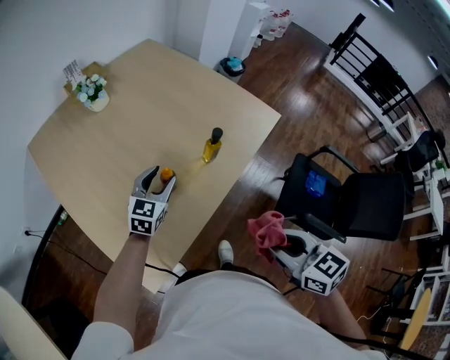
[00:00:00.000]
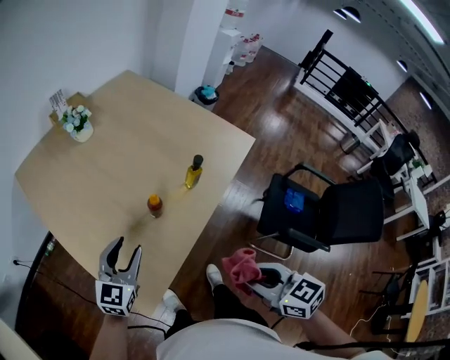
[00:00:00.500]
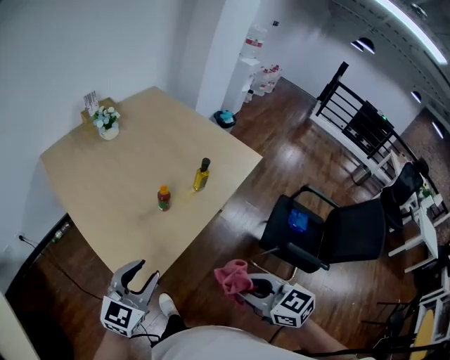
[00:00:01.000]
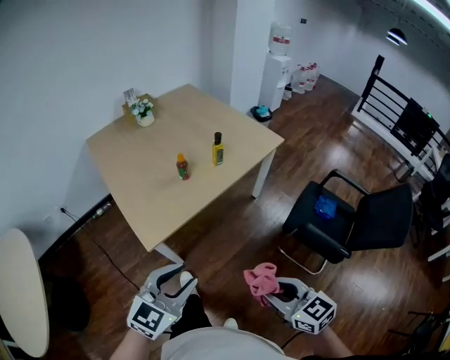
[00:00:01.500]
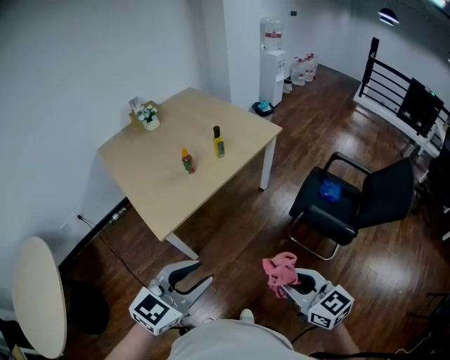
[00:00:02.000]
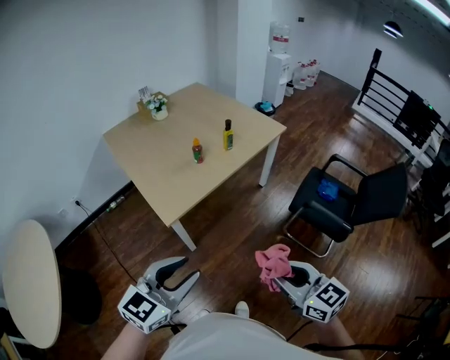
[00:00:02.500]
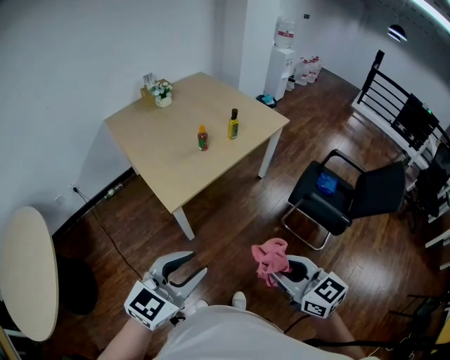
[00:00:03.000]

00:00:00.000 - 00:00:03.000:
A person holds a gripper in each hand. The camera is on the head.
00:00:00.000 - 00:00:01.500: The right gripper is displaced backward by approximately 30 cm. The left gripper heads backward, covering some 50 cm.
00:00:01.500 - 00:00:03.000: The right gripper heads backward, to the left and upward, covering some 15 cm; the left gripper travels backward by roughly 15 cm.

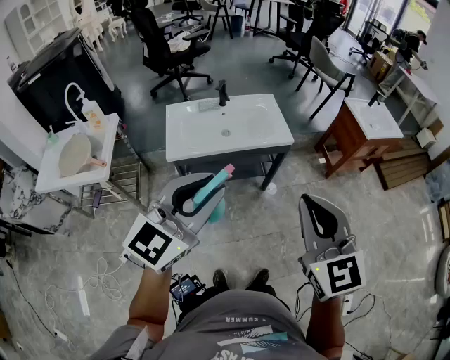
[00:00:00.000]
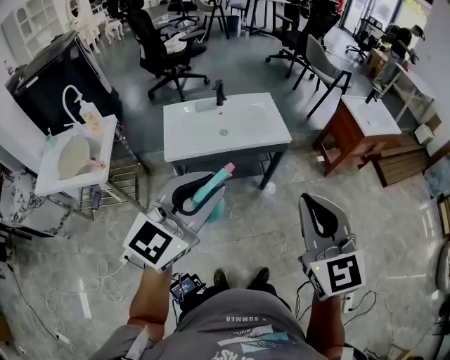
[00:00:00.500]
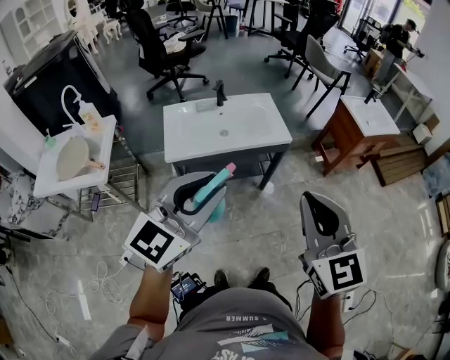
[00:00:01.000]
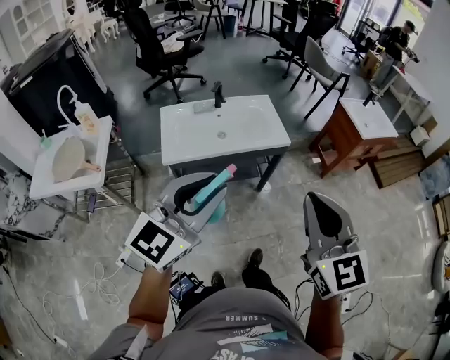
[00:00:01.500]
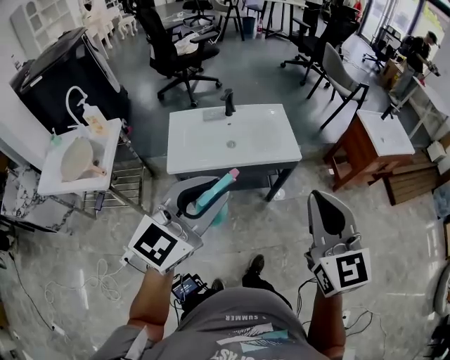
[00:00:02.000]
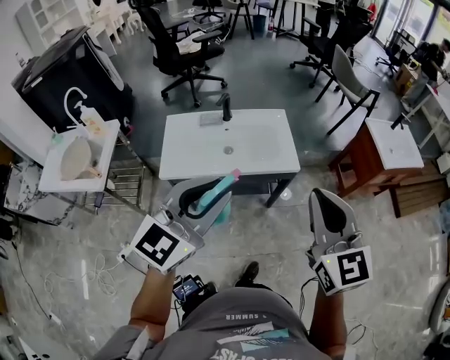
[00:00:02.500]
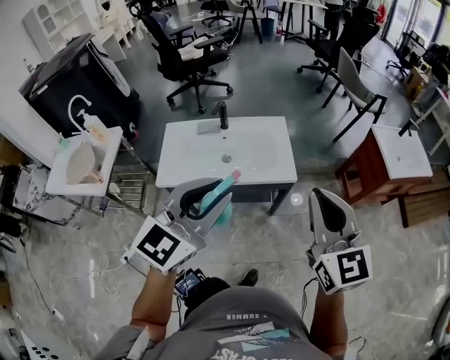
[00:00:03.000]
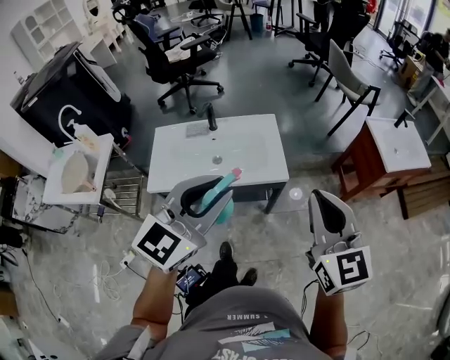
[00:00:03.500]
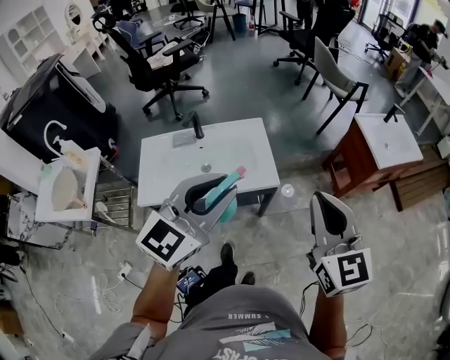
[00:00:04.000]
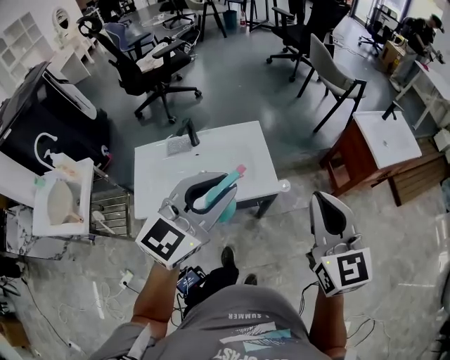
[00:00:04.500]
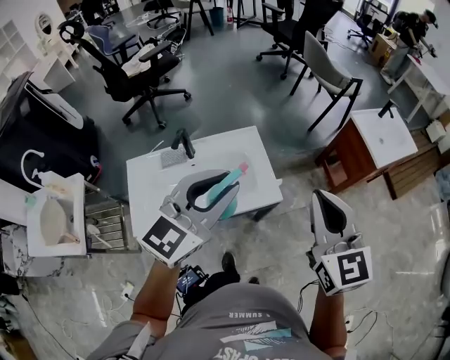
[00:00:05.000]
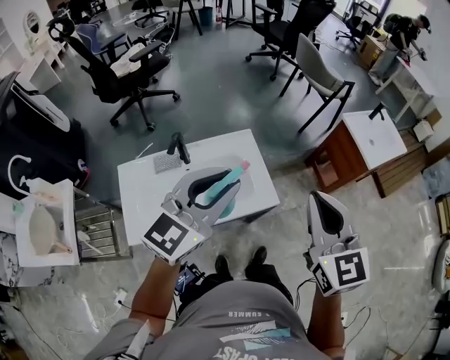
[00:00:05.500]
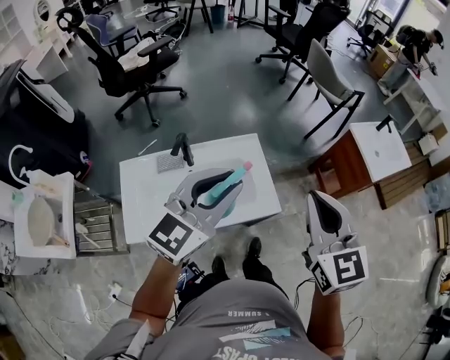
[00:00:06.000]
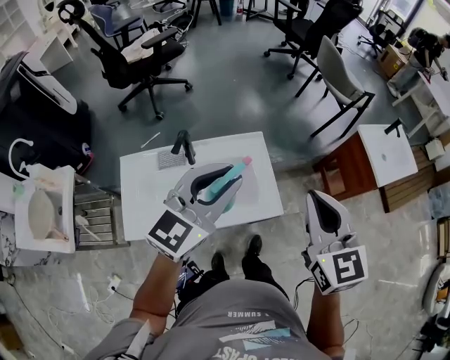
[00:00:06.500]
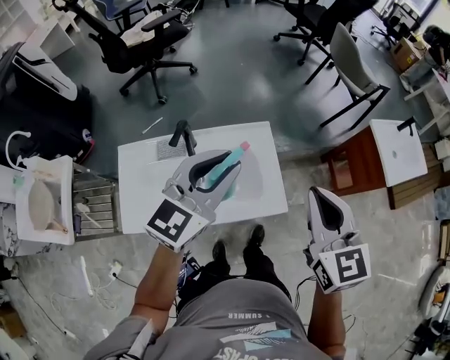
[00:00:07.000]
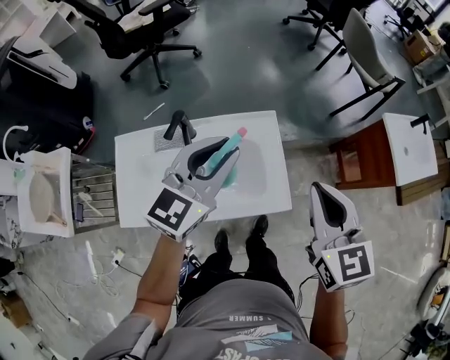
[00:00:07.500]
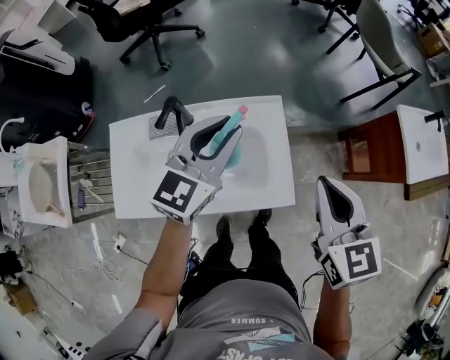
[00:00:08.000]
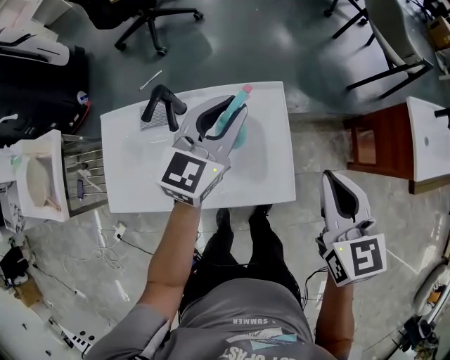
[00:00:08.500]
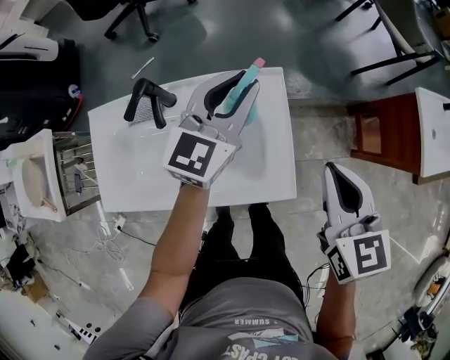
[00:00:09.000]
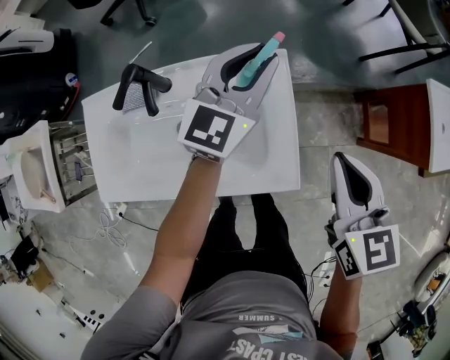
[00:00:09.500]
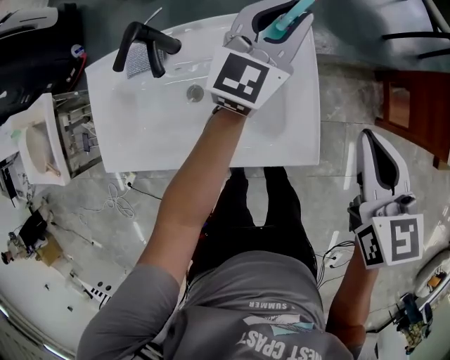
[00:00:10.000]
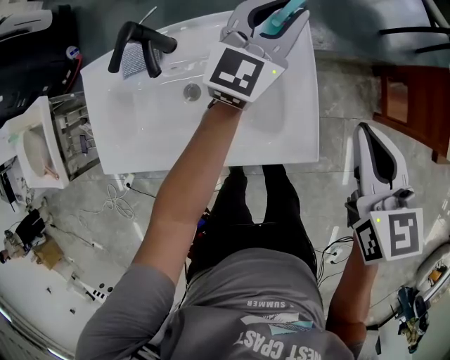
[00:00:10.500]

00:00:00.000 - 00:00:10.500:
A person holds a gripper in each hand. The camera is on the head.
00:00:00.000 - 00:00:02.000: Both grippers move forward, about 10 cm.
00:00:02.000 - 00:00:04.000: Both grippers move forward and to the right, roughly 30 cm.
00:00:04.000 - 00:00:06.500: The two grippers go some 25 cm forward and to the left.
00:00:06.500 - 00:00:08.500: The left gripper heads forward and downward, covering approximately 30 cm. The right gripper moves downward and forward, approximately 25 cm.
00:00:08.500 - 00:00:10.500: The right gripper moves downward, about 10 cm. Meanwhile the left gripper travels downward, forward and to the right by approximately 15 cm.

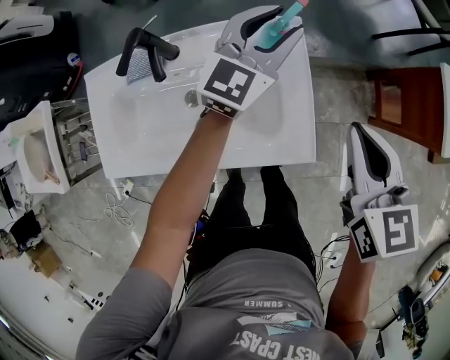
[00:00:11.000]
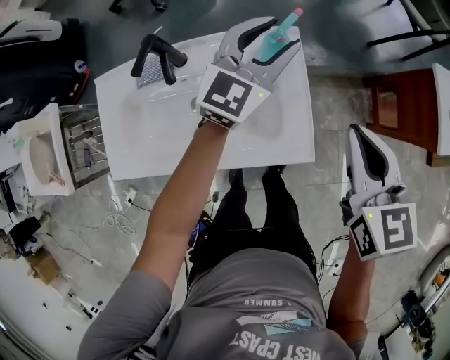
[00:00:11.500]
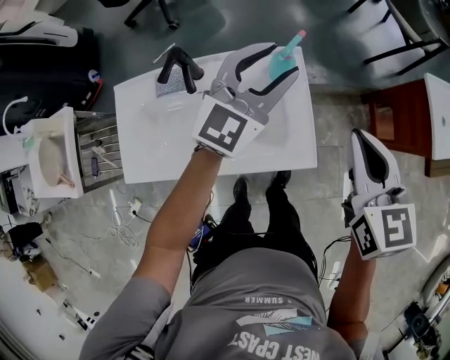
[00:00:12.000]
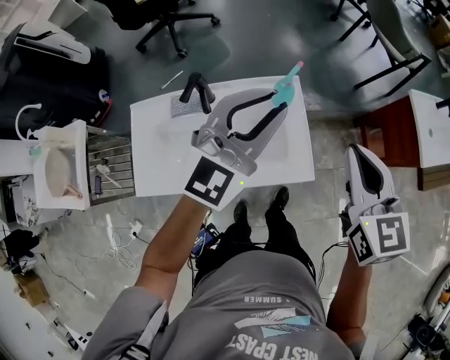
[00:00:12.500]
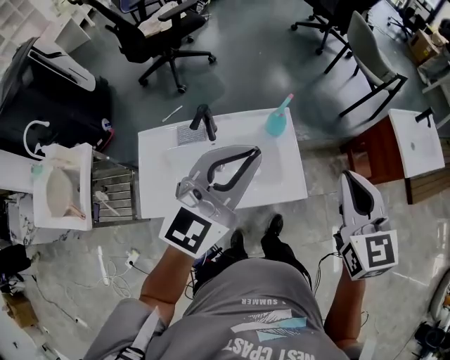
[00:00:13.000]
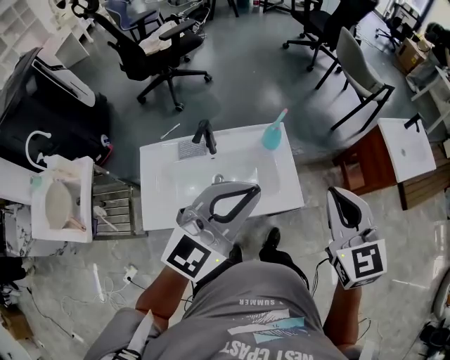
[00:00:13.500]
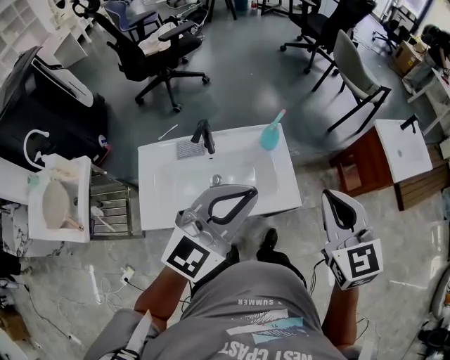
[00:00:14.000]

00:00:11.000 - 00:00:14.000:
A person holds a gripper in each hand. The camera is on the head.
00:00:11.000 - 00:00:12.500: The right gripper is displaced upward and backward by roughly 20 cm; the left gripper is displaced upward and backward by approximately 30 cm.
00:00:12.500 - 00:00:14.000: Both grippers move backward and upward, some 15 cm.

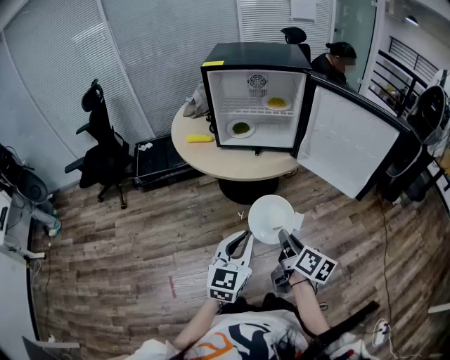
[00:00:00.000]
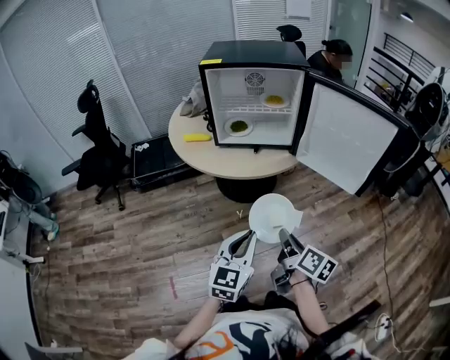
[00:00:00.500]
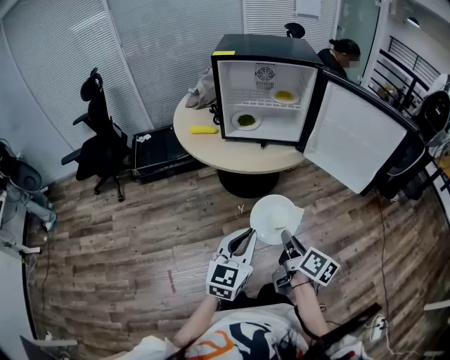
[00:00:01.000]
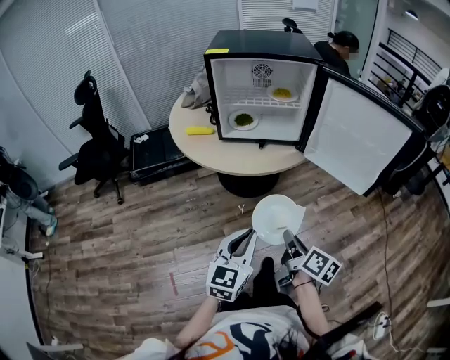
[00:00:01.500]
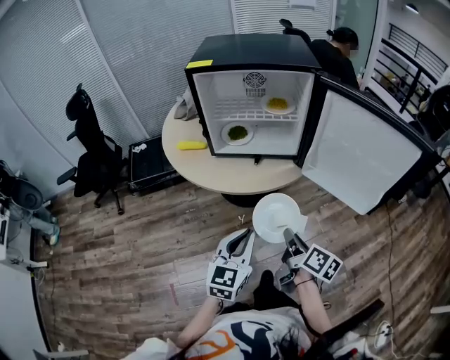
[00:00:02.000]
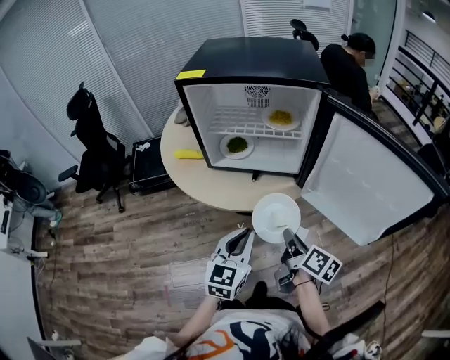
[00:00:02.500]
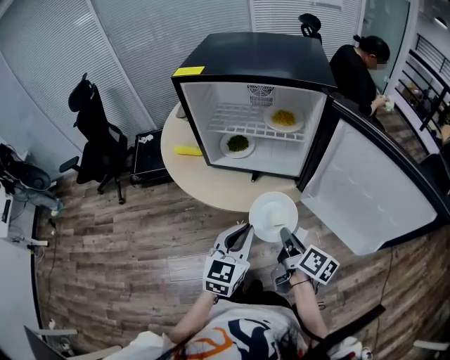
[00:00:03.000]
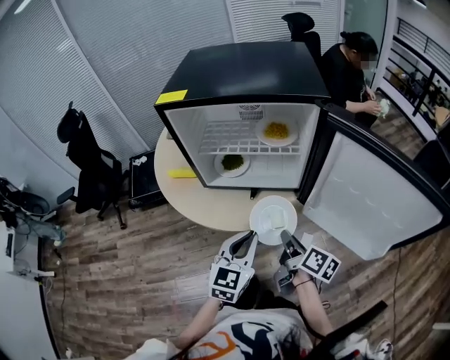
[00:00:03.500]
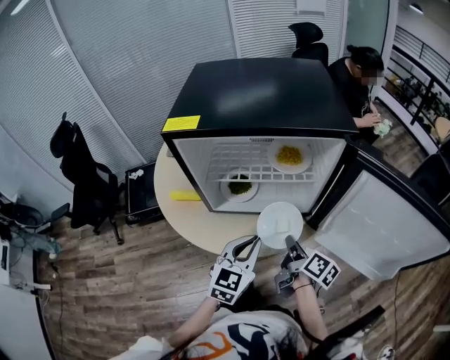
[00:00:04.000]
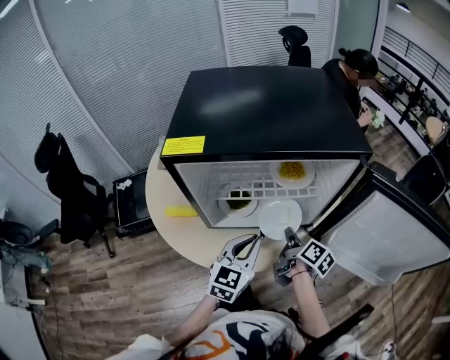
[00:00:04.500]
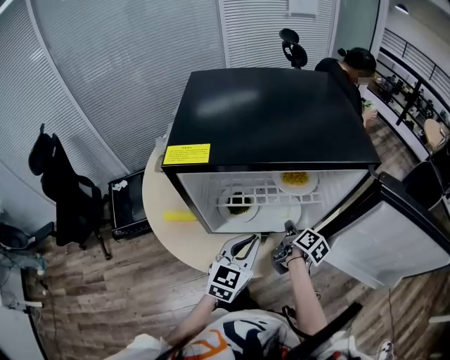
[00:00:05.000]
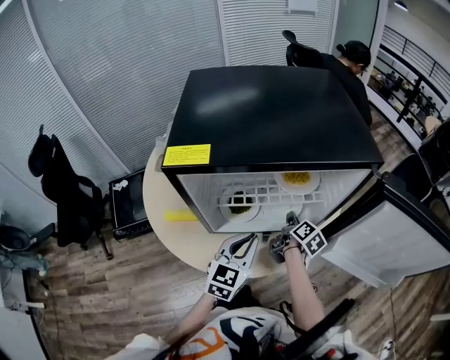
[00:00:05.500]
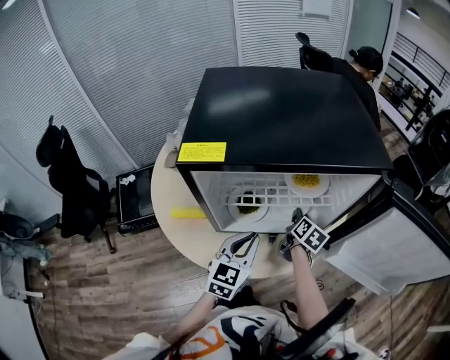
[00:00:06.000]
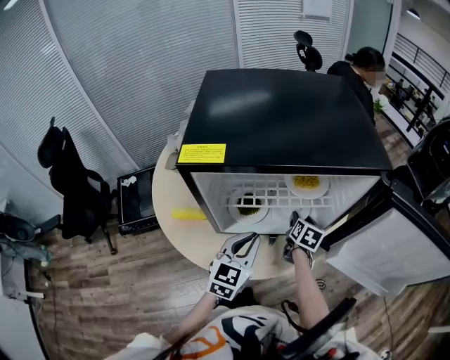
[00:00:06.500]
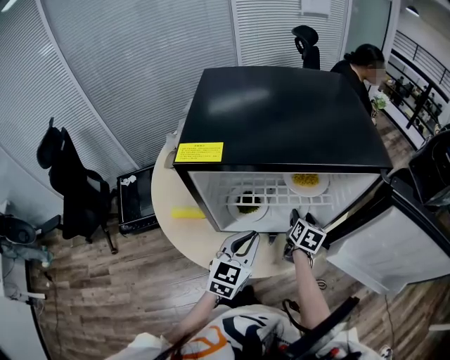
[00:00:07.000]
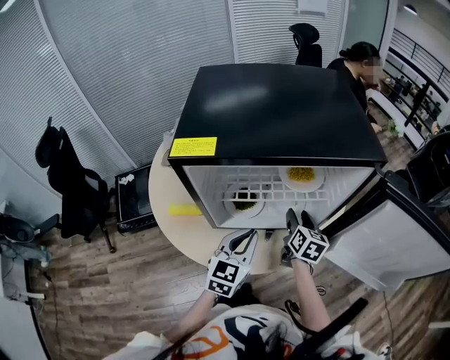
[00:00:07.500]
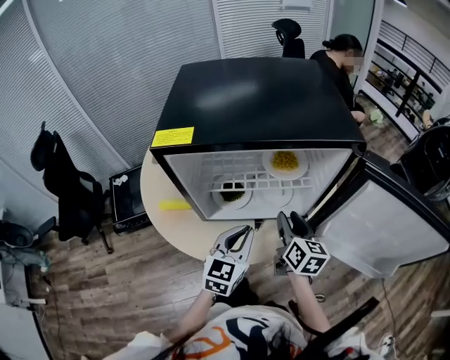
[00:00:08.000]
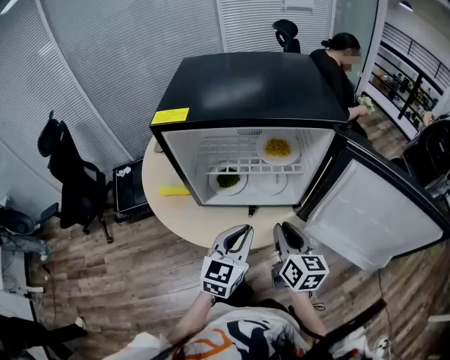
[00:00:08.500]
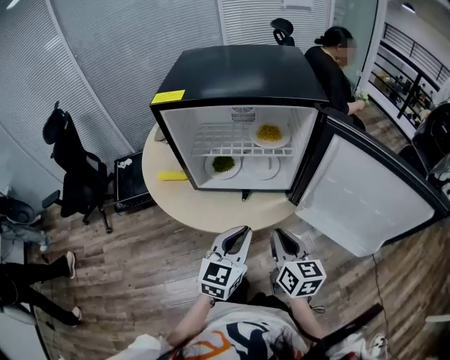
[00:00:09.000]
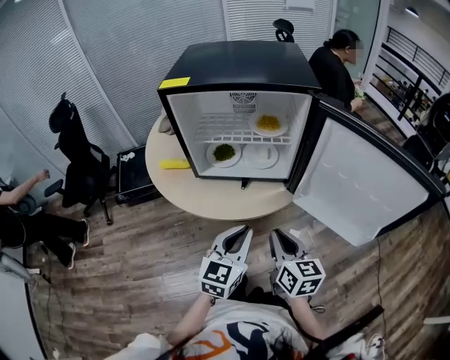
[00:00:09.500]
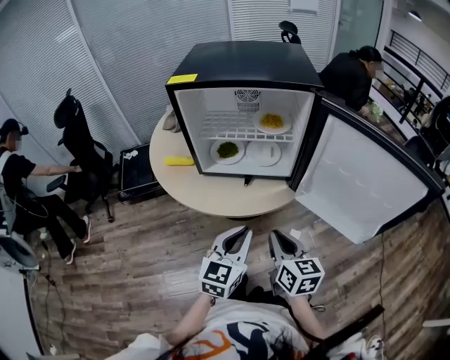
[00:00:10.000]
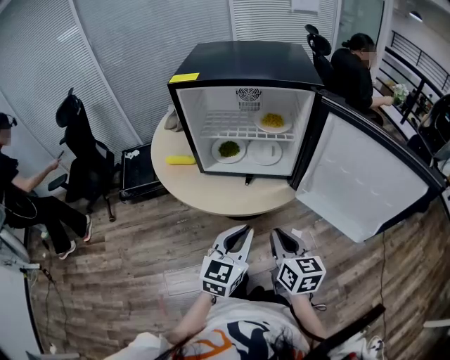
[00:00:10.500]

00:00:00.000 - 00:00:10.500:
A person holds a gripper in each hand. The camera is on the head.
00:00:00.000 - 00:00:02.000: The grippers both shift forward by roughly 10 cm.
00:00:02.000 - 00:00:04.000: Both grippers travel together forward, some 25 cm.
00:00:04.000 - 00:00:06.500: The right gripper goes approximately 20 cm forward, turns by some 50 degrees, and opens its fingers; the left gripper shifts roughly 10 cm to the left and forward.
00:00:06.500 - 00:00:08.500: The right gripper shifts about 25 cm backward and upward, swivels approximately 30 degrees, and closes up, while the left gripper heads to the right and backward, covering approximately 10 cm.
00:00:08.500 - 00:00:10.500: The two grippers go roughly 15 cm backward.
